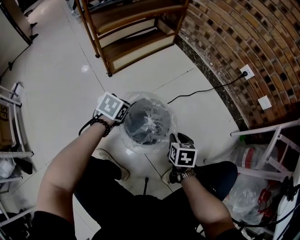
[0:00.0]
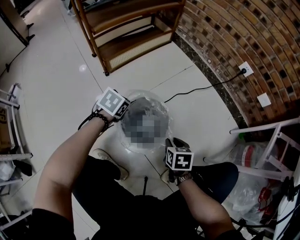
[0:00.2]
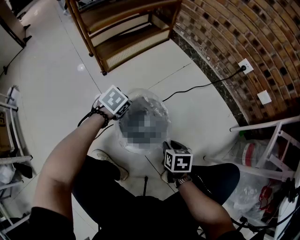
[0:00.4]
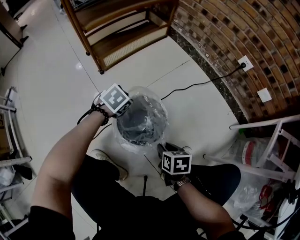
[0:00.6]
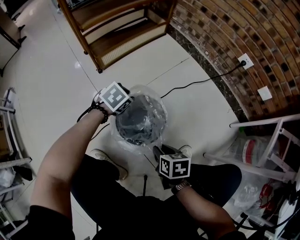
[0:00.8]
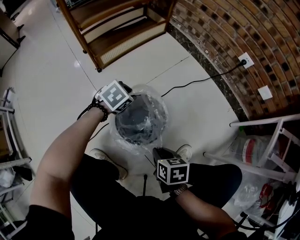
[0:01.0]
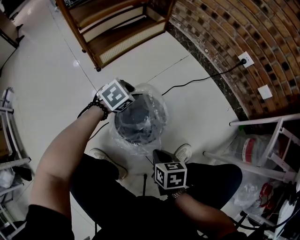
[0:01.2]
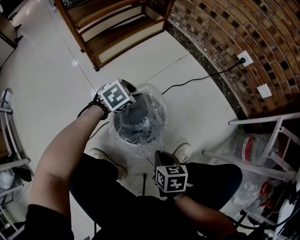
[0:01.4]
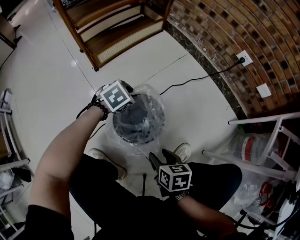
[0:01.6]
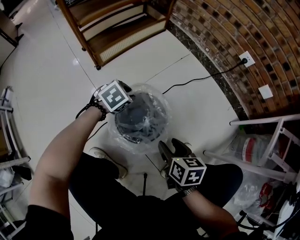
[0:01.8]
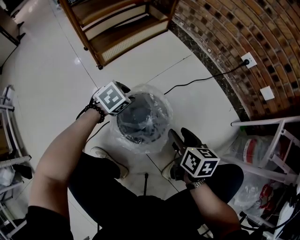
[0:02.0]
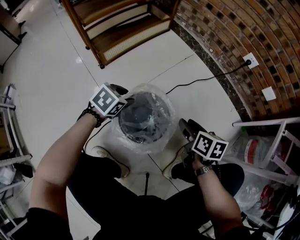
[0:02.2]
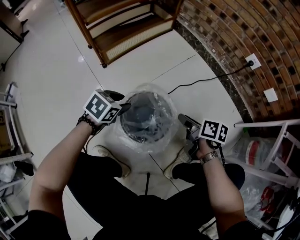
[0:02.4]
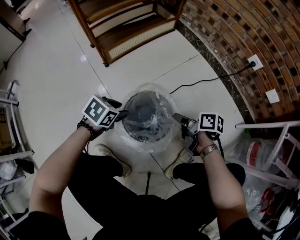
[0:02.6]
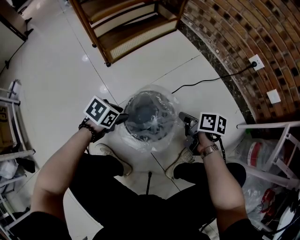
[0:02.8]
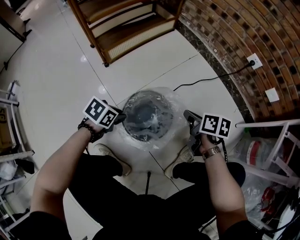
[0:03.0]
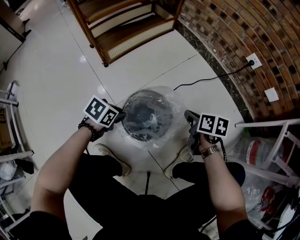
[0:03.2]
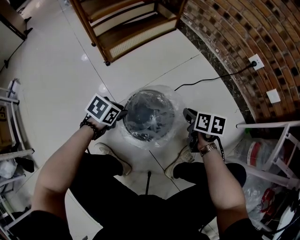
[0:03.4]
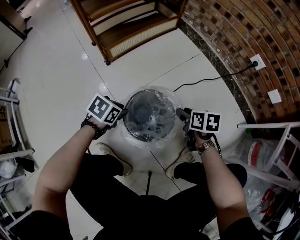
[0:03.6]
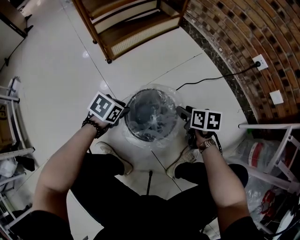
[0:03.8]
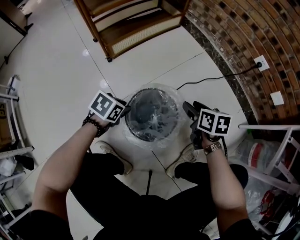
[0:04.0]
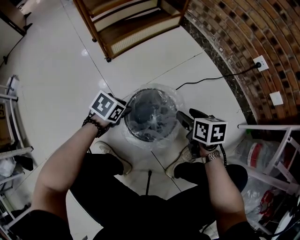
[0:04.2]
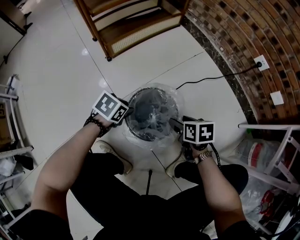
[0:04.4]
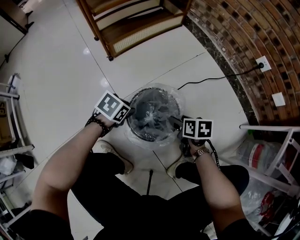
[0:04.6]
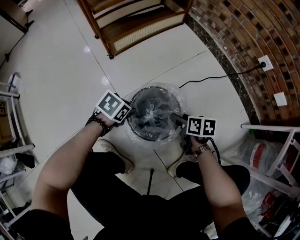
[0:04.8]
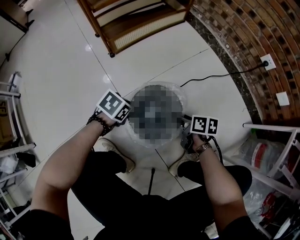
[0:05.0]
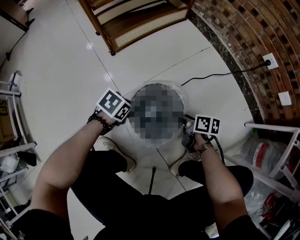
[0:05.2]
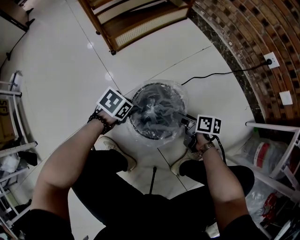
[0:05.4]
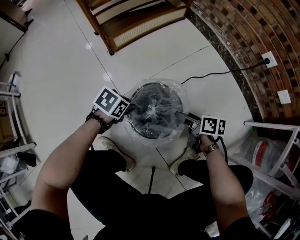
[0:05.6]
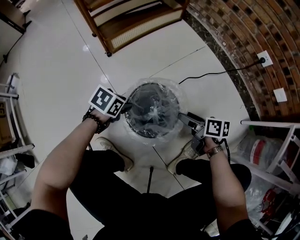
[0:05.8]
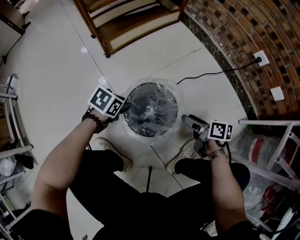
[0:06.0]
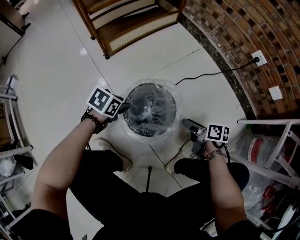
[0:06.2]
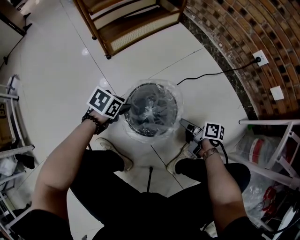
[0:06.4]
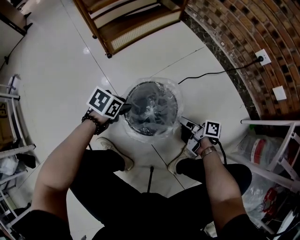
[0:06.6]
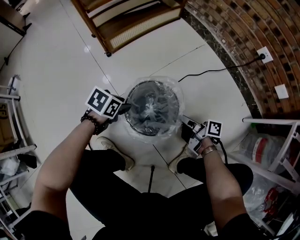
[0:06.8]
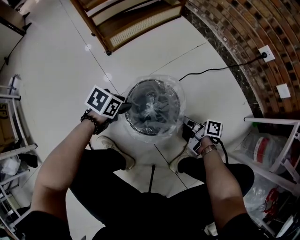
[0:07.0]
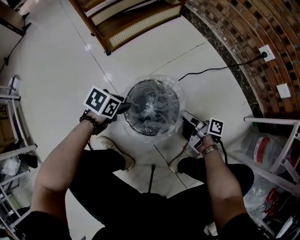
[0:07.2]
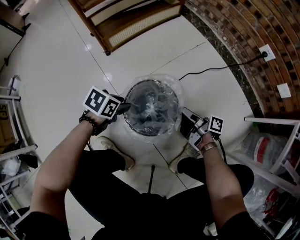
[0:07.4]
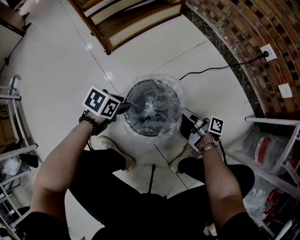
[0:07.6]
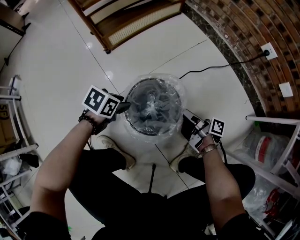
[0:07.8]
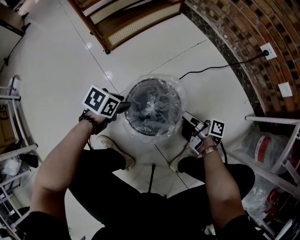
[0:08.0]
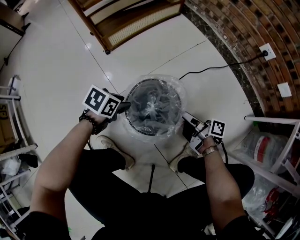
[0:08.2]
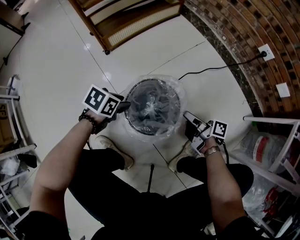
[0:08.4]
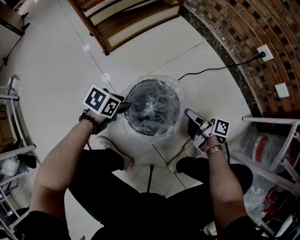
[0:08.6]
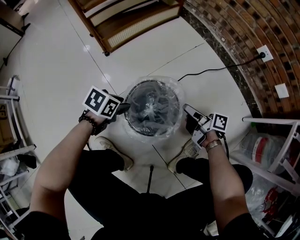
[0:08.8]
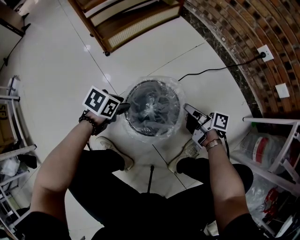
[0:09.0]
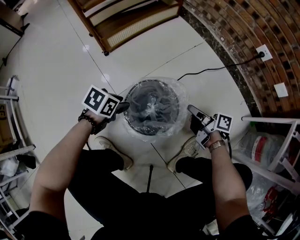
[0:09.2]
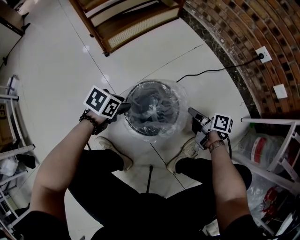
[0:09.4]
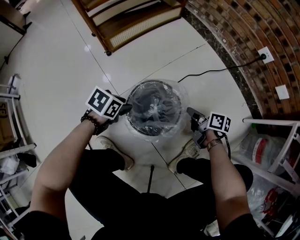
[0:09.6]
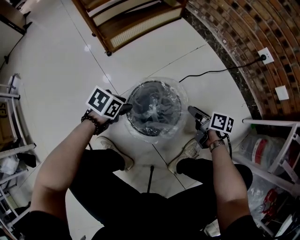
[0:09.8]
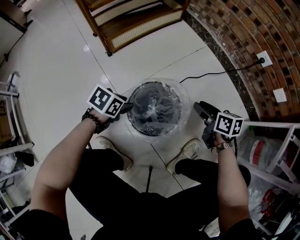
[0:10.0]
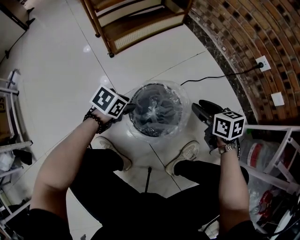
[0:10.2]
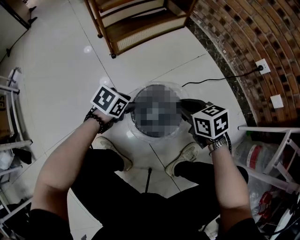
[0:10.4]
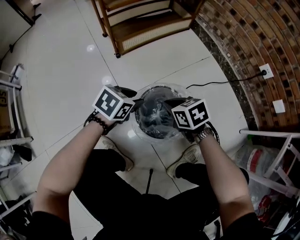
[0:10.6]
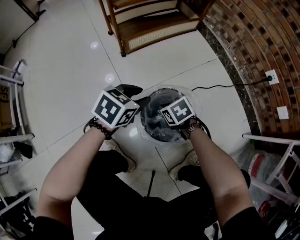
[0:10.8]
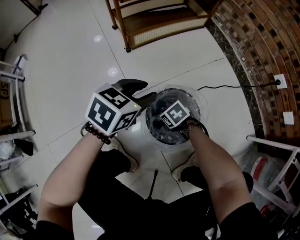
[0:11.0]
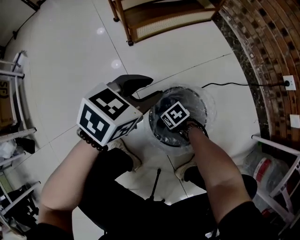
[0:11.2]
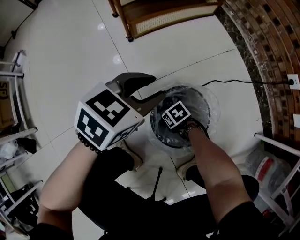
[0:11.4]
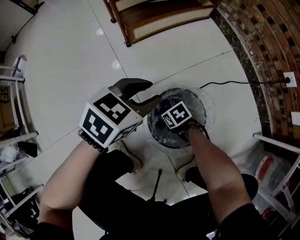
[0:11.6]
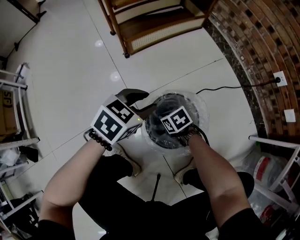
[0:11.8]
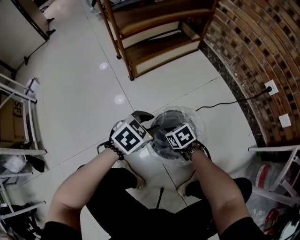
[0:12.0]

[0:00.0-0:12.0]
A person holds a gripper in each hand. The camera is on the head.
0:00.0 to 0:01.6: The right gripper heads backward, covering roughly 10 cm, and opens its fingers; the left gripper shifts roughly 10 cm to the right and forward, and rotates approximately 30 degrees.
0:01.6 to 0:03.0: The right gripper is displaced forward by roughly 20 cm, and closes its fingers. Meanwhile the left gripper shifts approximately 15 cm backward and to the left, and rotates about 30 degrees.
0:03.0 to 0:04.4: The right gripper heads downward, covering roughly 5 cm, turns by some 20 degrees, and opens up.
0:04.4 to 0:06.0: The right gripper rotates roughly 30 degrees.
0:06.0 to 0:07.6: The right gripper turns by roughly 40 degrees, and closes.
0:07.6 to 0:09.0: The right gripper opens, then closes again.
0:09.0 to 0:10.4: The right gripper moves upward and to the left, about 10 cm, twists approximately 60 degrees counterclockwise, seen from behind, and opens and closes again.
0:10.4 to 0:12.0: The left gripper goes roughly 10 cm upward, and rotates about 20 degrees; the right gripper moves downward, some 10 cm.

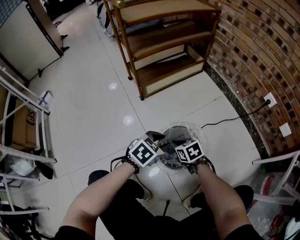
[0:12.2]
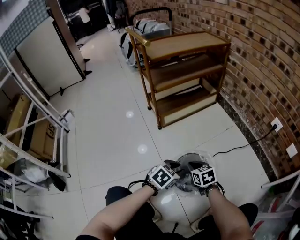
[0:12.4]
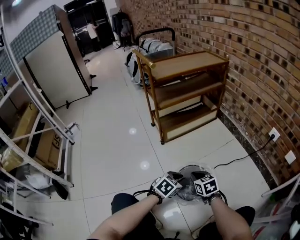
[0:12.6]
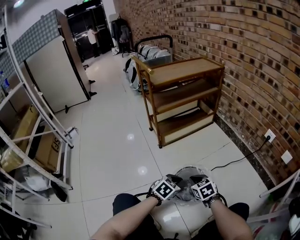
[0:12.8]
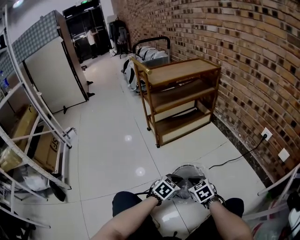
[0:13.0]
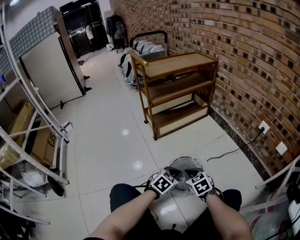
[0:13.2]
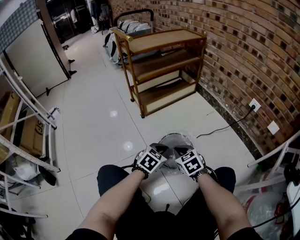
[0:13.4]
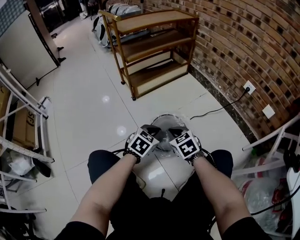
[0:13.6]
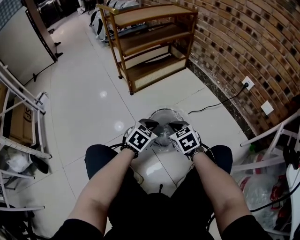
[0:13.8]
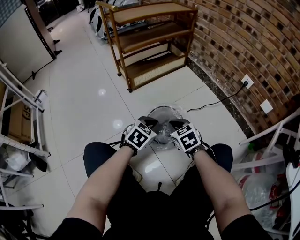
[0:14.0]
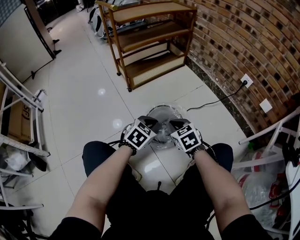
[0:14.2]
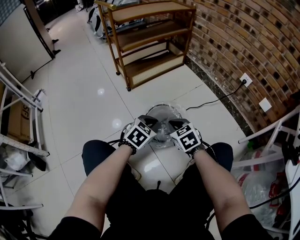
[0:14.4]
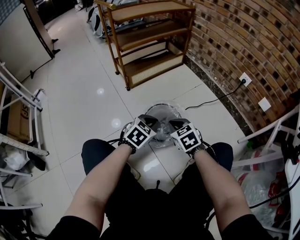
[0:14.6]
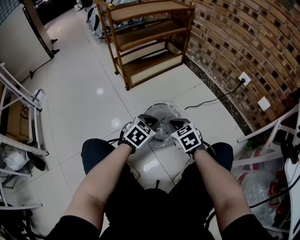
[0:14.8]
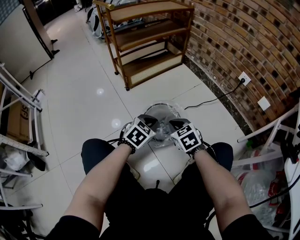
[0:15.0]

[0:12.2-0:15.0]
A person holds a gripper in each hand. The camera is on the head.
0:12.2 to 0:13.6: The right gripper heads upward and backward, covering approximately 15 cm, and changes its angle by some 20 degrees, while the left gripper moves backward, roughly 5 cm, and closes its fingers.
0:13.6 to 0:15.0: The grippers move only a little.

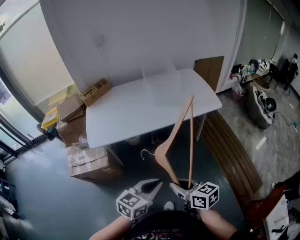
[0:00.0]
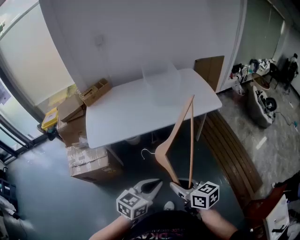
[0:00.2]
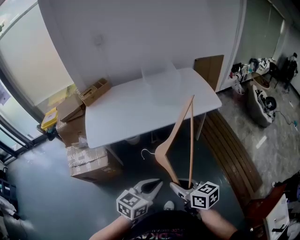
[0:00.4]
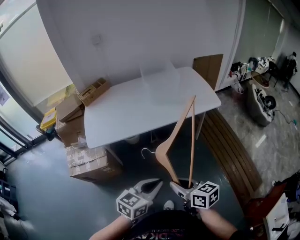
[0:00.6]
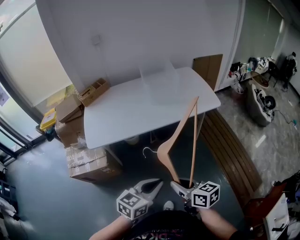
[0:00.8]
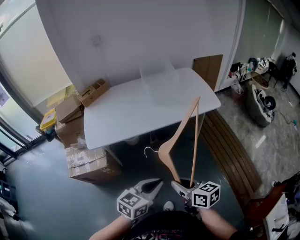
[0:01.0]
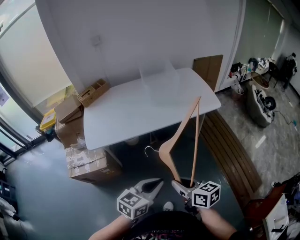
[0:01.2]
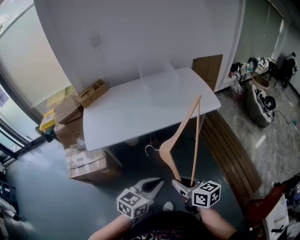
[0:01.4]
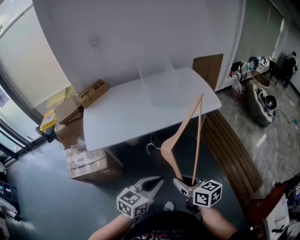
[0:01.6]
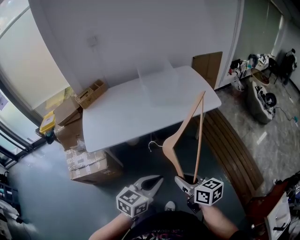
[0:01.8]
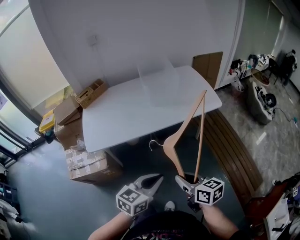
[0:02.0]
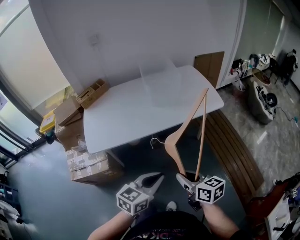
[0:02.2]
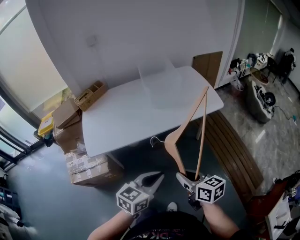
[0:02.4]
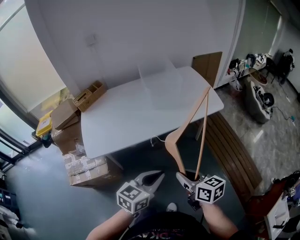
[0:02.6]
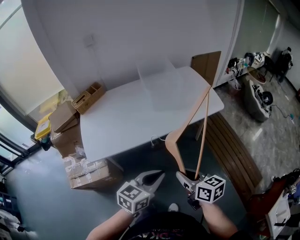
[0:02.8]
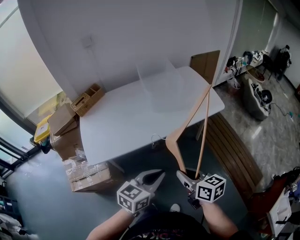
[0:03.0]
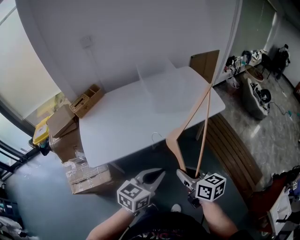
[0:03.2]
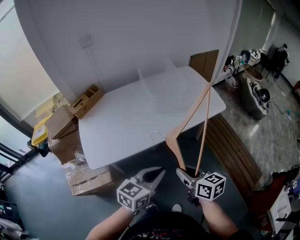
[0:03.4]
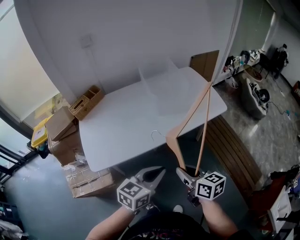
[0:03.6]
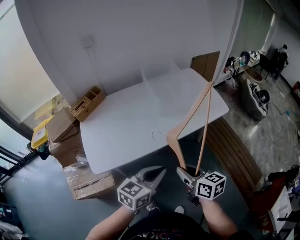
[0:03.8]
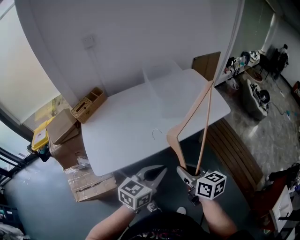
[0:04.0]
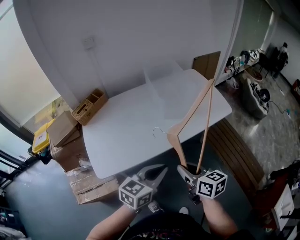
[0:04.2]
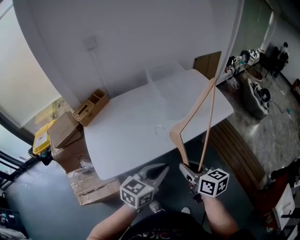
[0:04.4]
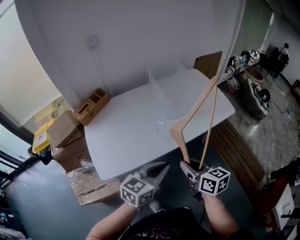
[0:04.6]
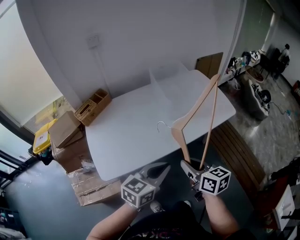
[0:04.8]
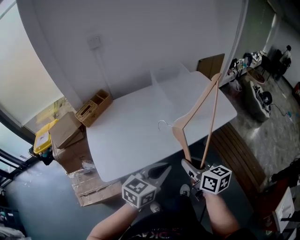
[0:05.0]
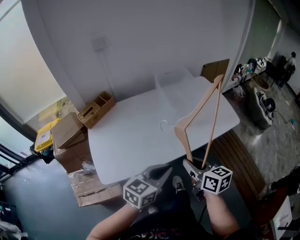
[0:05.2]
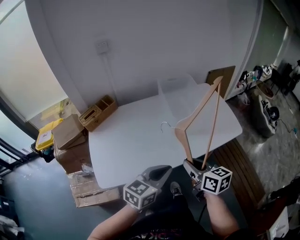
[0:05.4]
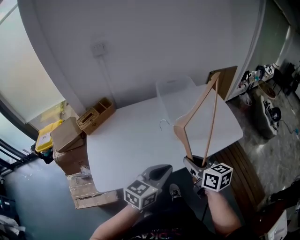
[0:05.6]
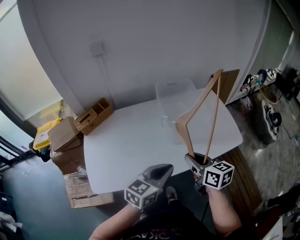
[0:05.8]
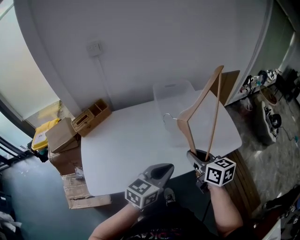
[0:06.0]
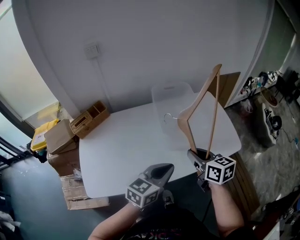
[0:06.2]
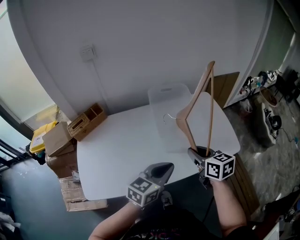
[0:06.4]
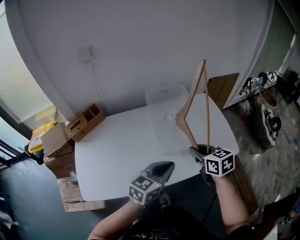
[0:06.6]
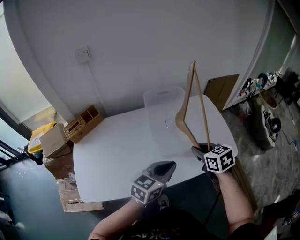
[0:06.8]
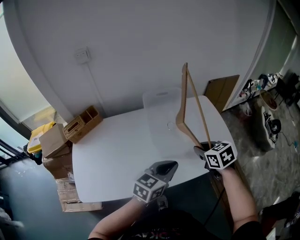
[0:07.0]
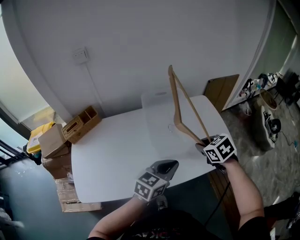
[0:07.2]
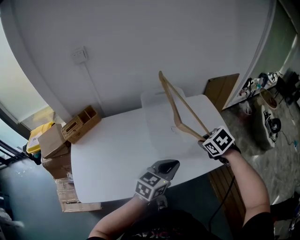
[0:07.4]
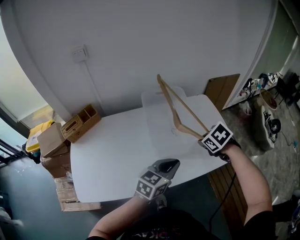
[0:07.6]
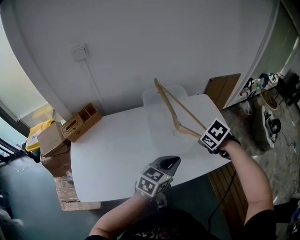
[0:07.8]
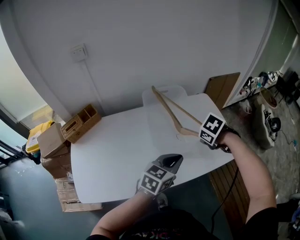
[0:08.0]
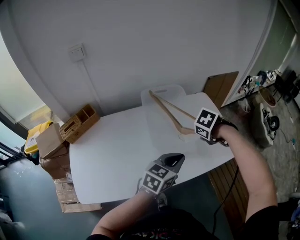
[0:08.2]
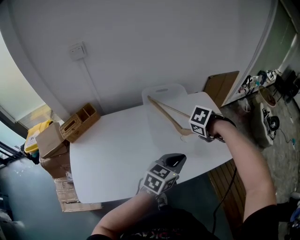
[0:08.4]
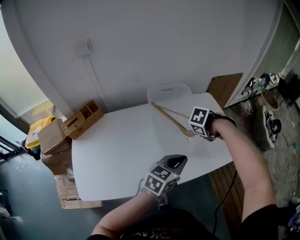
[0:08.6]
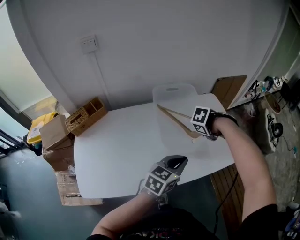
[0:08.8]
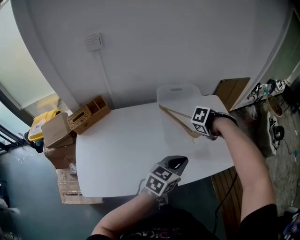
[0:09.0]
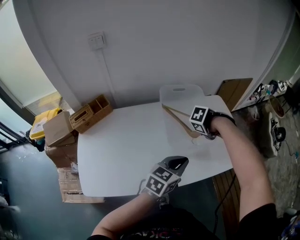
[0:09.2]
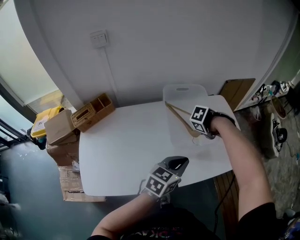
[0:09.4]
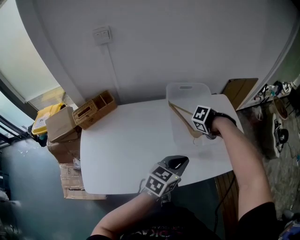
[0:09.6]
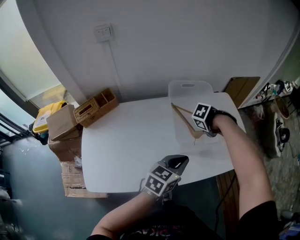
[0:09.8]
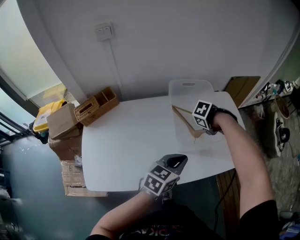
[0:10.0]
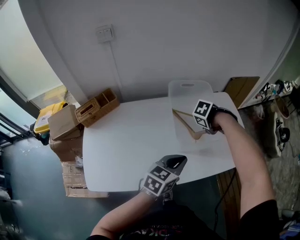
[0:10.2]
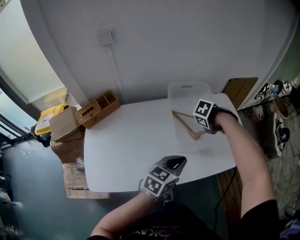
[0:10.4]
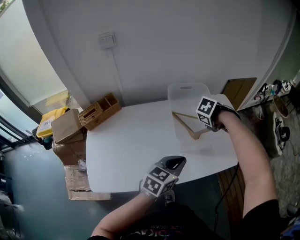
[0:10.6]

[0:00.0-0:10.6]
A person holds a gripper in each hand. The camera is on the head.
0:00.0 to 0:01.6: The right gripper changes place by roughly 5 cm.
0:01.6 to 0:03.0: The two grippers go some 15 cm forward and to the left.
0:03.0 to 0:04.6: The grippers both shift to the left and forward by about 15 cm.
0:04.6 to 0:06.0: The two grippers go roughly 20 cm forward.
0:06.0 to 0:07.6: Both grippers move forward and to the right, roughly 20 cm. The right gripper tips its fingers downward by about 50 degrees.
0:07.6 to 0:09.0: The right gripper swivels roughly 40 degrees.
0:09.0 to 0:10.6: The left gripper ends up some 5 cm from where it was; the right gripper moves some 5 cm.
